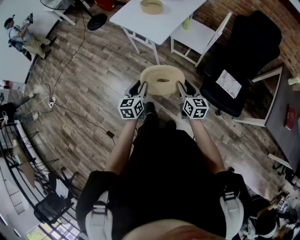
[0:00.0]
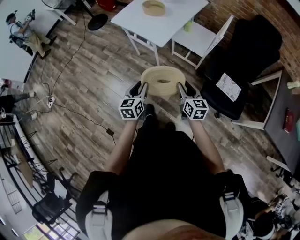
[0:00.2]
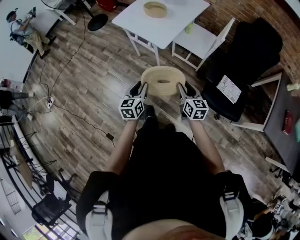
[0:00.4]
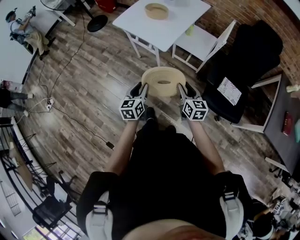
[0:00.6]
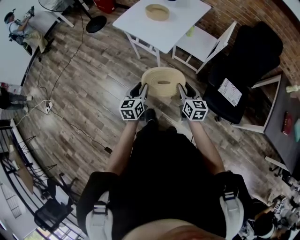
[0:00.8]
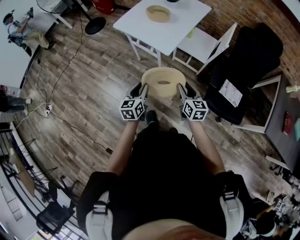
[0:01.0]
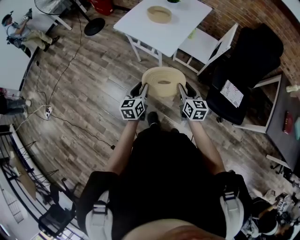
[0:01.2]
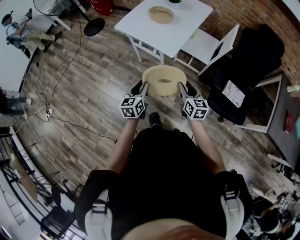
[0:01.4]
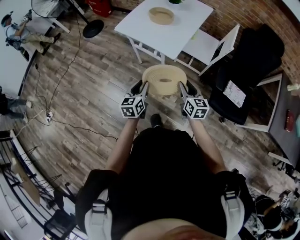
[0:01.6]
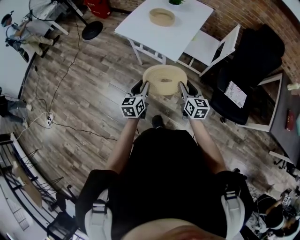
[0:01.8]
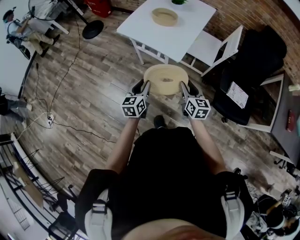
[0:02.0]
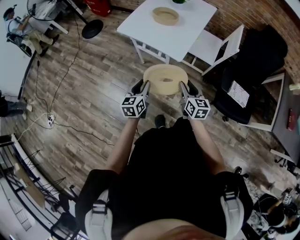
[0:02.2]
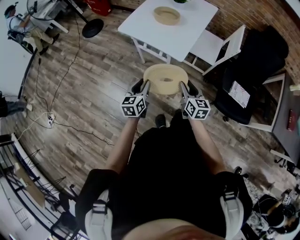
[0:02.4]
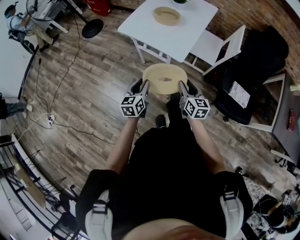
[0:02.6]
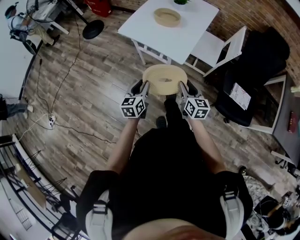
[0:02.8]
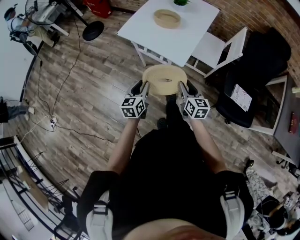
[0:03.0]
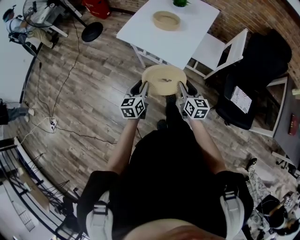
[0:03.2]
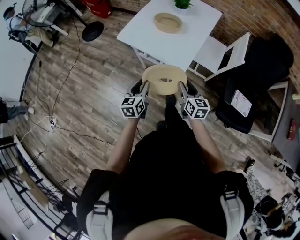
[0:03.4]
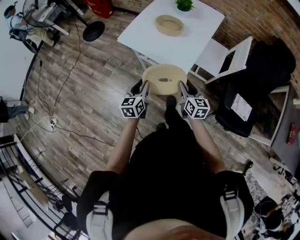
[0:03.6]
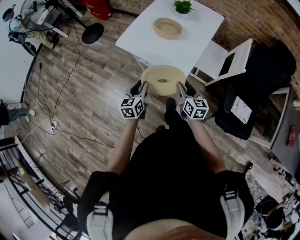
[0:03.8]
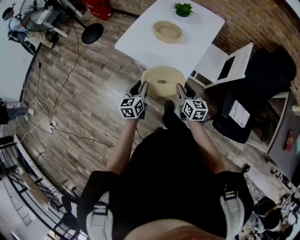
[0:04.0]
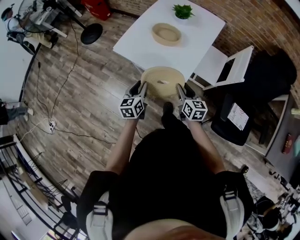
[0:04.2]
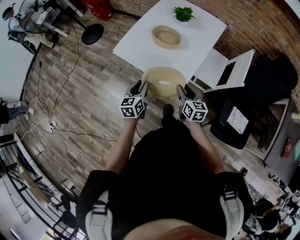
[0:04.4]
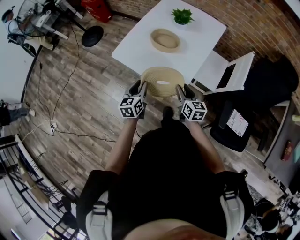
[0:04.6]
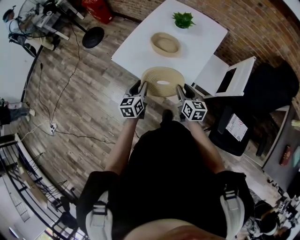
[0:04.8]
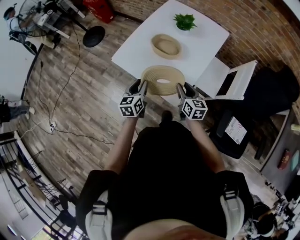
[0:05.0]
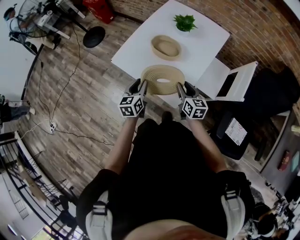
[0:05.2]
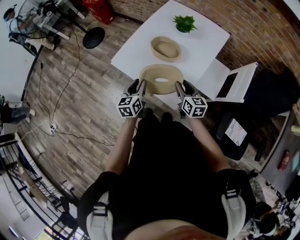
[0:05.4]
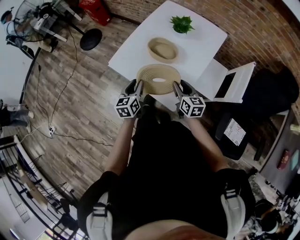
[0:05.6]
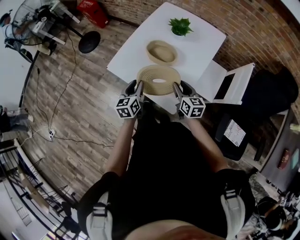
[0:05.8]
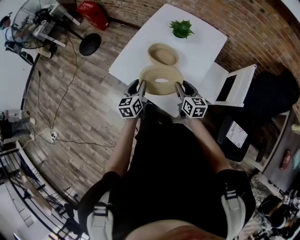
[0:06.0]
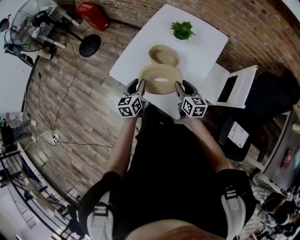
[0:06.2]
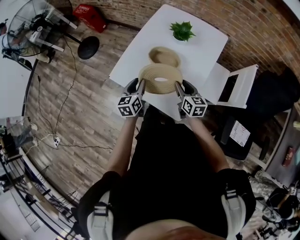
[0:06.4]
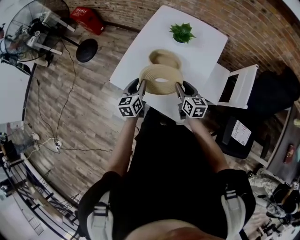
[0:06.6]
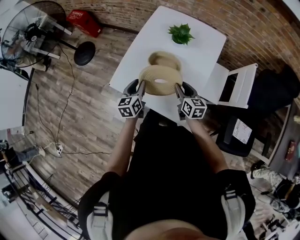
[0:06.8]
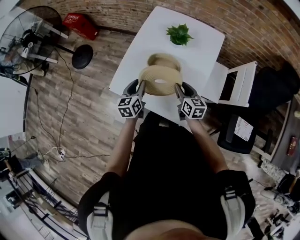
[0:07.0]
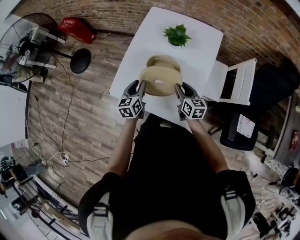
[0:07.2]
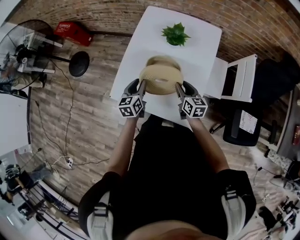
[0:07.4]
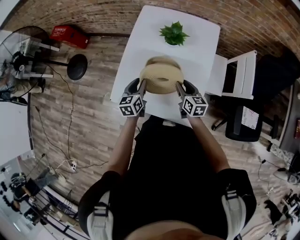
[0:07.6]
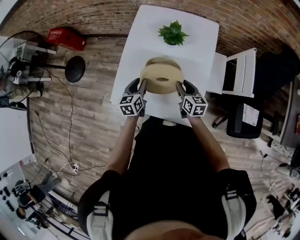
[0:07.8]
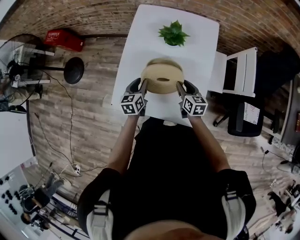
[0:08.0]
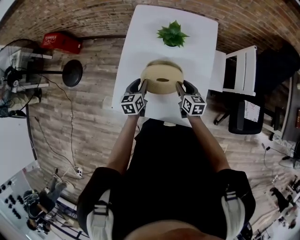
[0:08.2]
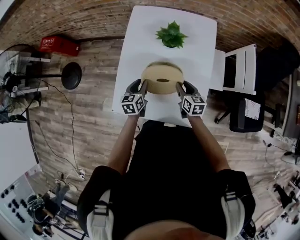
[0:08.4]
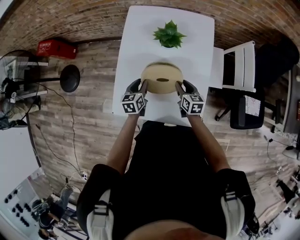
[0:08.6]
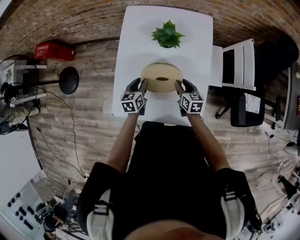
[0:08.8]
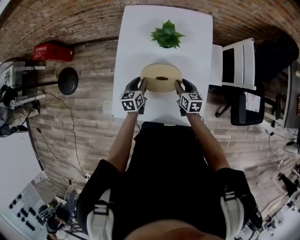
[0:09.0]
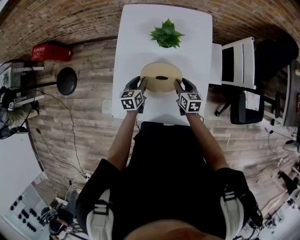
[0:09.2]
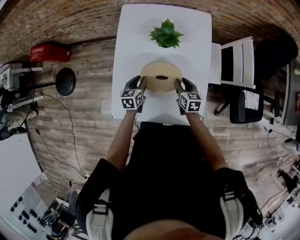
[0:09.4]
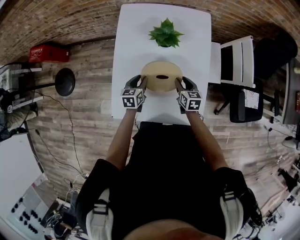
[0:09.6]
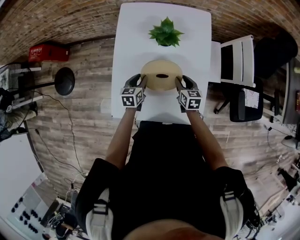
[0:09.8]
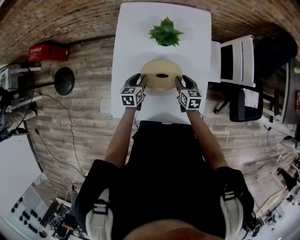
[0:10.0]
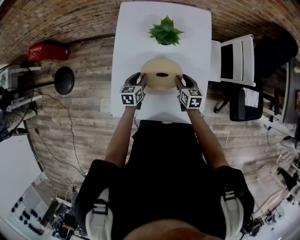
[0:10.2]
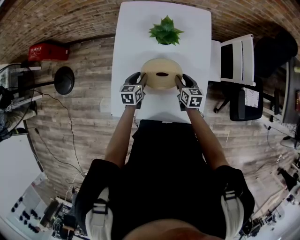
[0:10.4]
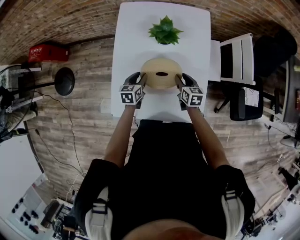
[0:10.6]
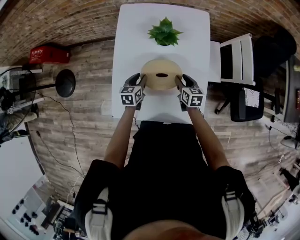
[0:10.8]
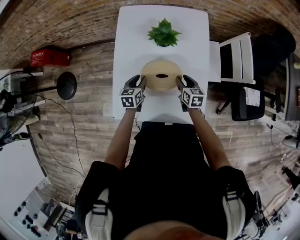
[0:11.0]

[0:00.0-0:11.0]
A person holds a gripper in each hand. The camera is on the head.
0:00.0 to 0:01.6: The left gripper shifts about 20 cm forward and to the left; the right gripper goes approximately 20 cm to the left and forward.
0:01.6 to 0:03.2: Both grippers move forward and to the left, roughly 10 cm.
0:03.2 to 0:04.8: Both grippers travel together forward, some 25 cm.
0:04.8 to 0:06.2: The grippers both shift forward by some 15 cm.
0:06.2 to 0:07.8: The right gripper is displaced forward and downward by some 10 cm; the left gripper goes roughly 15 cm forward, and swivels about 20 degrees.
0:07.8 to 0:09.4: The left gripper goes some 10 cm downward and forward. The right gripper goes approximately 5 cm downward.
0:09.4 to 0:11.0: Both grippers stay about where they are.

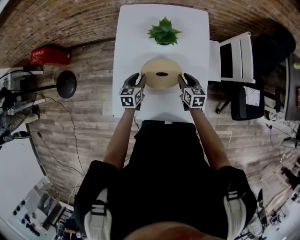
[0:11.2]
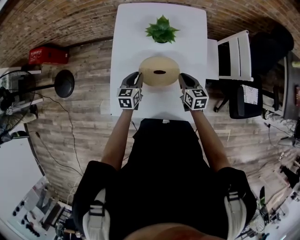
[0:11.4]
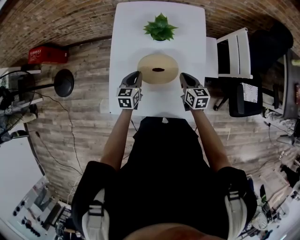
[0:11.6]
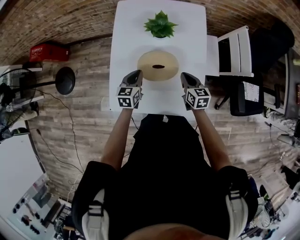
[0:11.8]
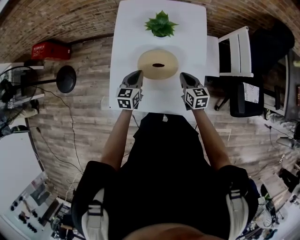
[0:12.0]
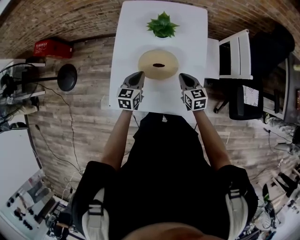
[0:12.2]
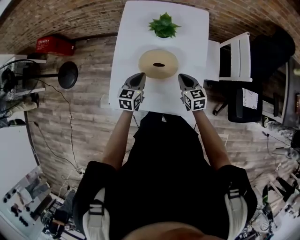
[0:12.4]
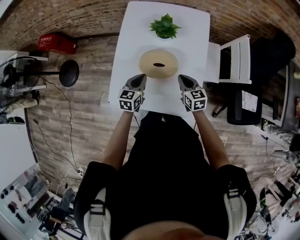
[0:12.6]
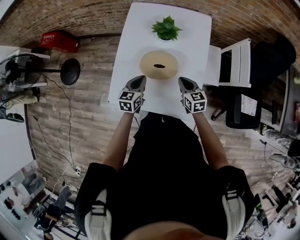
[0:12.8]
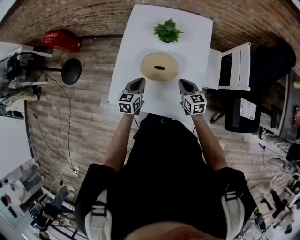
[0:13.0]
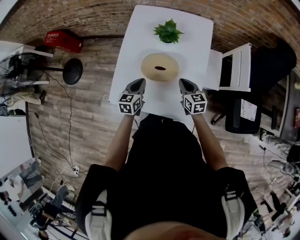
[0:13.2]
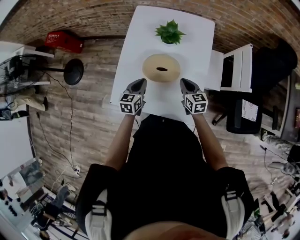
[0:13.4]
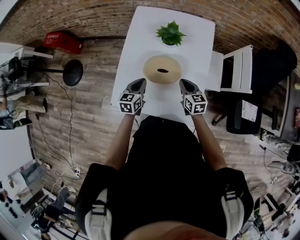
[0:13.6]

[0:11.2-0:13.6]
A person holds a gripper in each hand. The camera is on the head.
0:11.2 to 0:12.4: The left gripper shifts some 10 cm upward and backward, and closes; the right gripper moves backward, roughly 5 cm, and closes up.
0:12.4 to 0:13.6: The grippers move only a little.

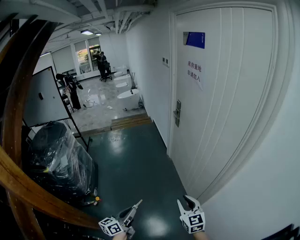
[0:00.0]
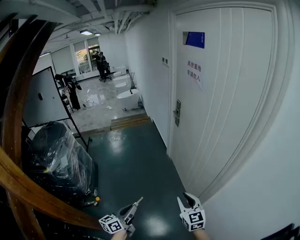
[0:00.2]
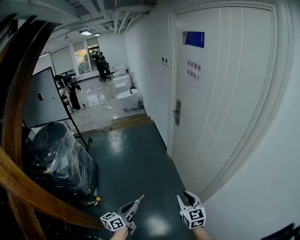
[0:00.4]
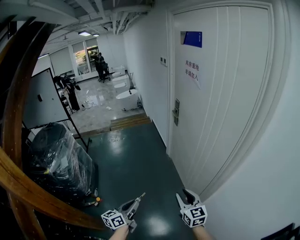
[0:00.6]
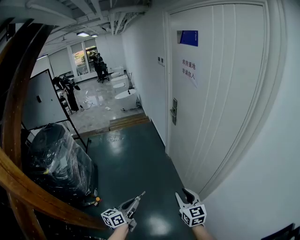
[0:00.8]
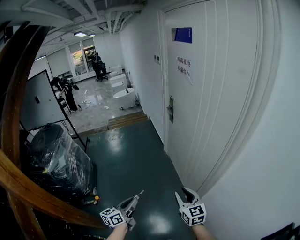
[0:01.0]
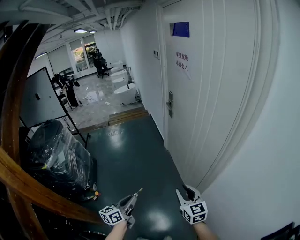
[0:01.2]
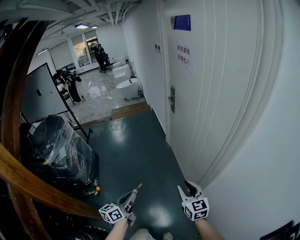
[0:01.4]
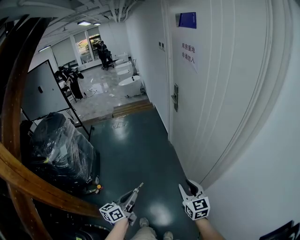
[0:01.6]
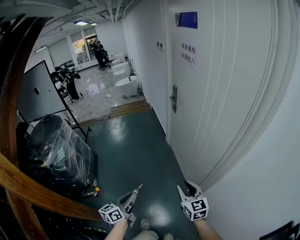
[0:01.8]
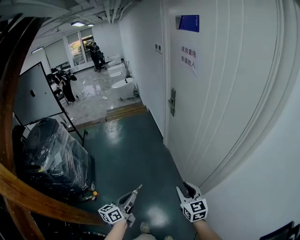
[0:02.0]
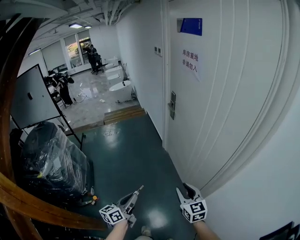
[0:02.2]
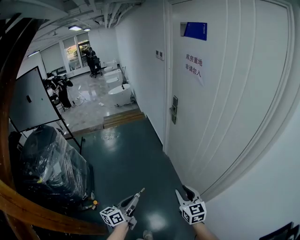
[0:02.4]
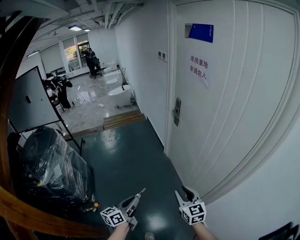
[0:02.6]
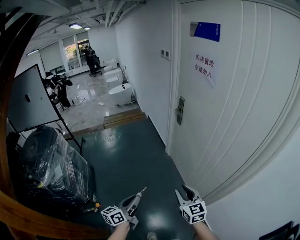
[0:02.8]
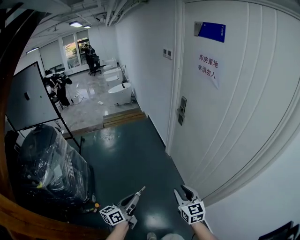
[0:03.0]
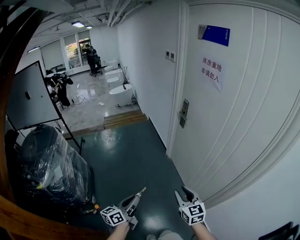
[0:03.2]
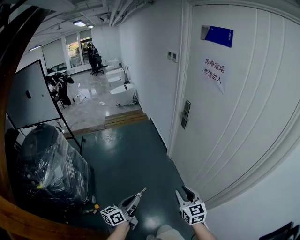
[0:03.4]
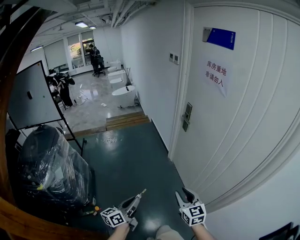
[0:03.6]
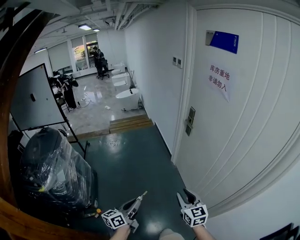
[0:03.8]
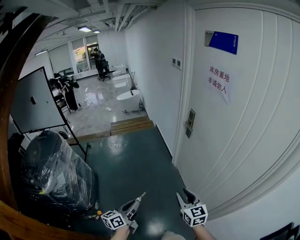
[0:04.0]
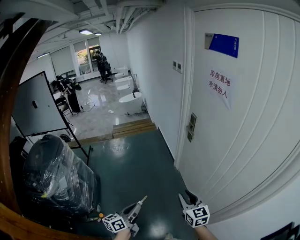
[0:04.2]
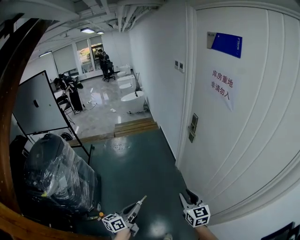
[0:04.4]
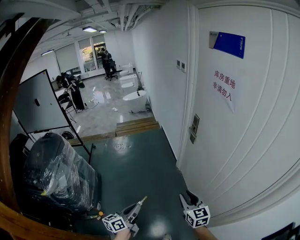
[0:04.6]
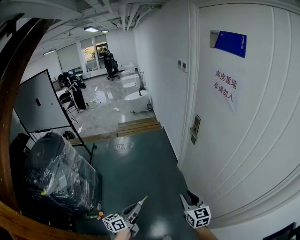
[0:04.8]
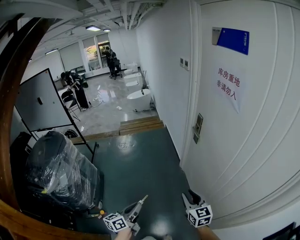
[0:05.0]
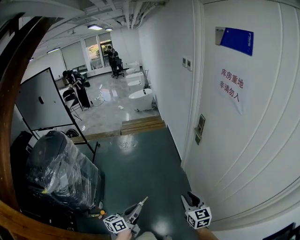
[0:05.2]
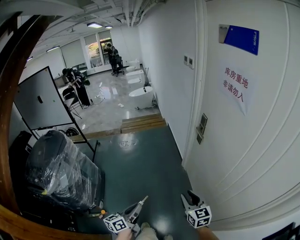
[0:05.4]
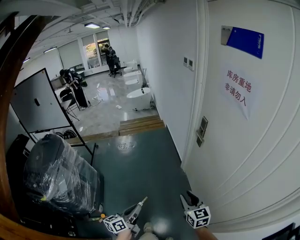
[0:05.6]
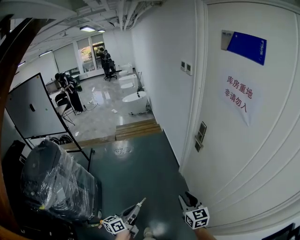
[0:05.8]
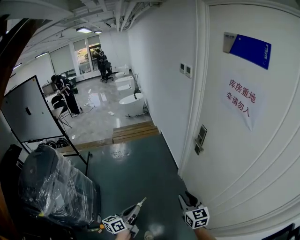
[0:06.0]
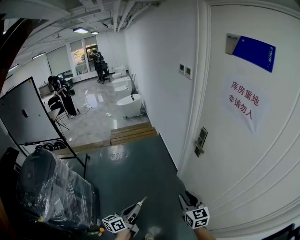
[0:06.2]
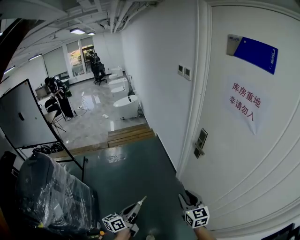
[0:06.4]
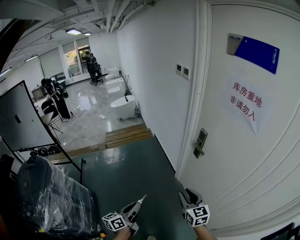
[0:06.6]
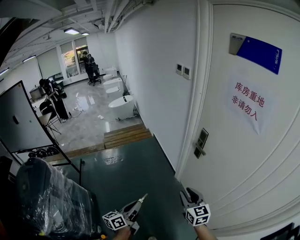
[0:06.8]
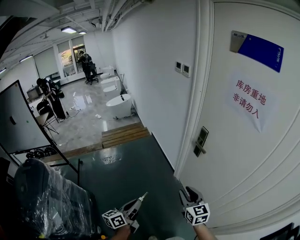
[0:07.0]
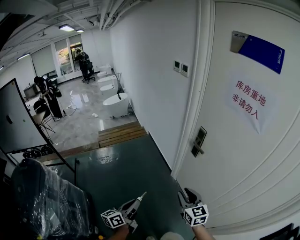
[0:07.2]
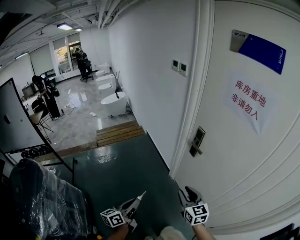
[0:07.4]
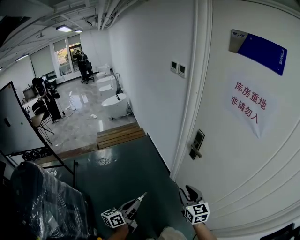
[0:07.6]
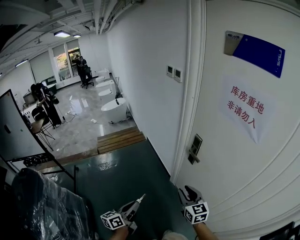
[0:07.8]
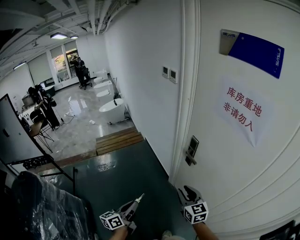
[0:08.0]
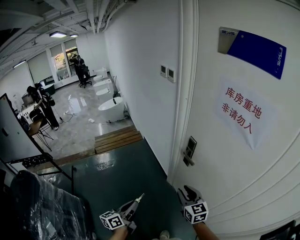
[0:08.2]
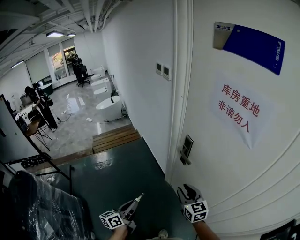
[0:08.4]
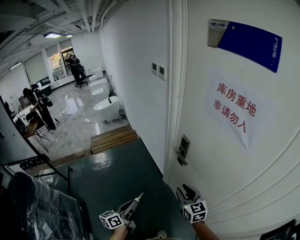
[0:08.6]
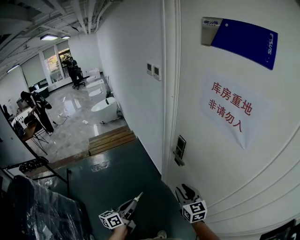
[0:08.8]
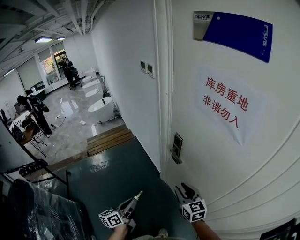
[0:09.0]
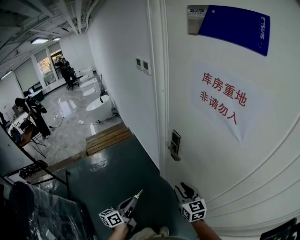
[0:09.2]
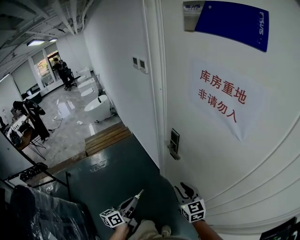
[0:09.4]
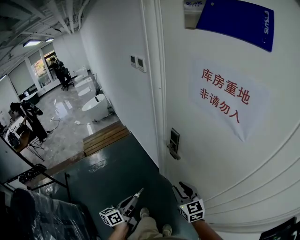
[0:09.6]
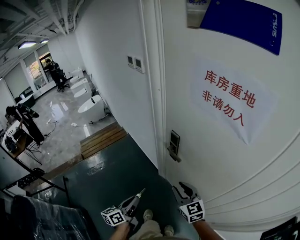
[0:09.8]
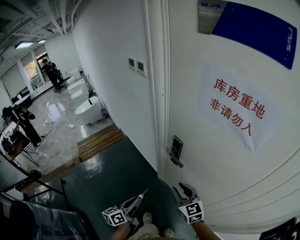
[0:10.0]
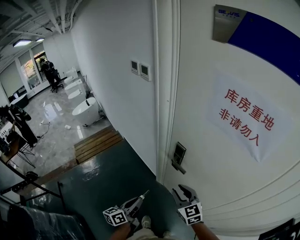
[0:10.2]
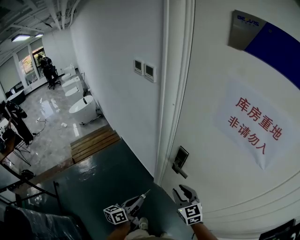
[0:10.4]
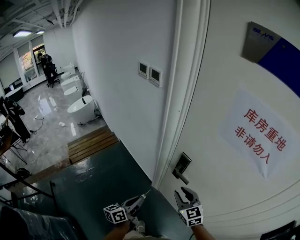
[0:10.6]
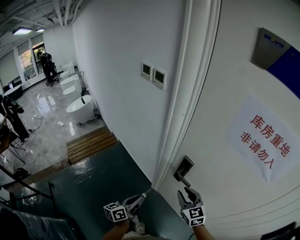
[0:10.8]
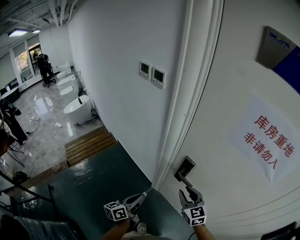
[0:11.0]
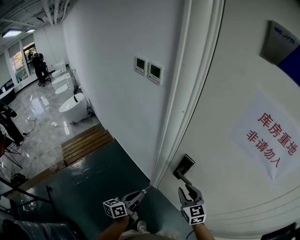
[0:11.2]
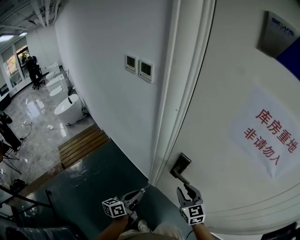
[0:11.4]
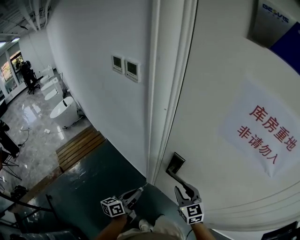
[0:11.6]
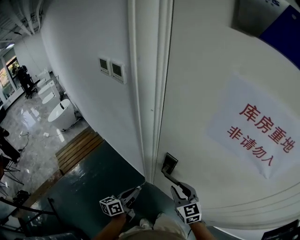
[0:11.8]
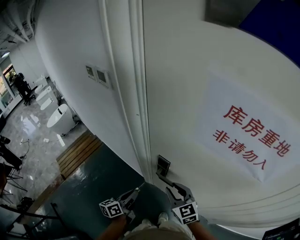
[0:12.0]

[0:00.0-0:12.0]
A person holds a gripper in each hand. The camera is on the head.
0:00.0 to 0:01.6: The two grippers go roughly 5 cm to the right.
0:01.6 to 0:03.0: The grippers both shift to the left and forward by some 20 cm.
0:03.0 to 0:04.4: The right gripper travels forward by about 15 cm; the left gripper heads forward, covering roughly 10 cm.
0:04.4 to 0:06.0: The grippers both shift forward by roughly 15 cm.
0:06.0 to 0:07.6: Both grippers travel together forward, roughly 15 cm.
0:07.6 to 0:09.0: The left gripper shifts roughly 15 cm forward and to the right; the right gripper heads to the right and forward, covering roughly 15 cm.
0:09.0 to 0:10.4: The left gripper shifts some 15 cm forward. Meanwhile the right gripper heads forward and to the left, covering approximately 15 cm.
0:10.4 to 0:12.0: The left gripper heads forward, covering roughly 15 cm. Meanwhile the right gripper shifts approximately 10 cm forward.
